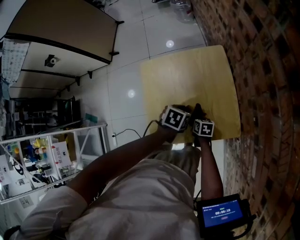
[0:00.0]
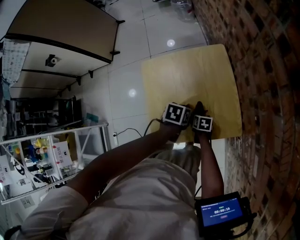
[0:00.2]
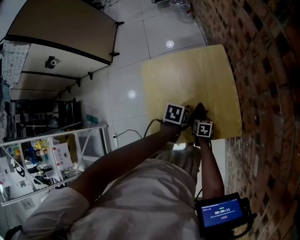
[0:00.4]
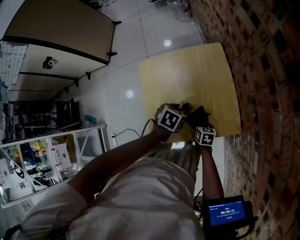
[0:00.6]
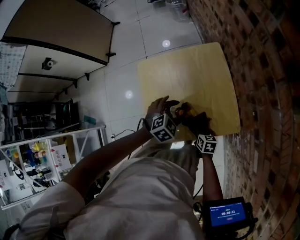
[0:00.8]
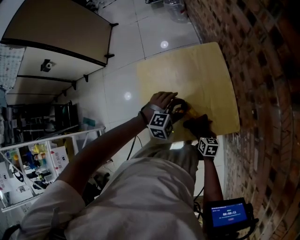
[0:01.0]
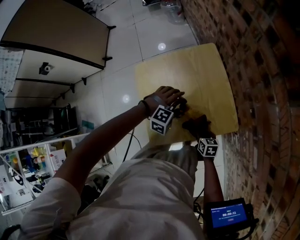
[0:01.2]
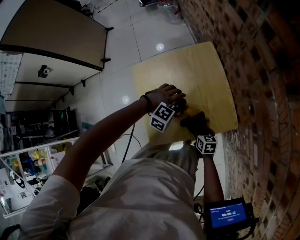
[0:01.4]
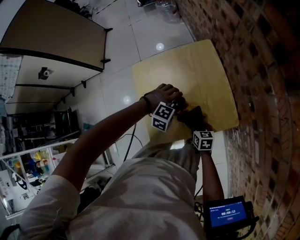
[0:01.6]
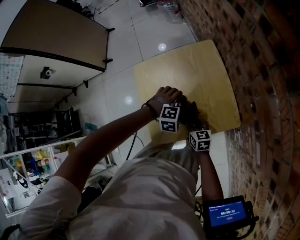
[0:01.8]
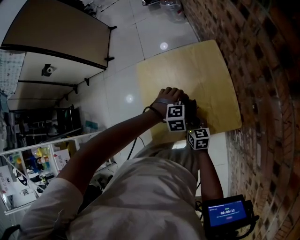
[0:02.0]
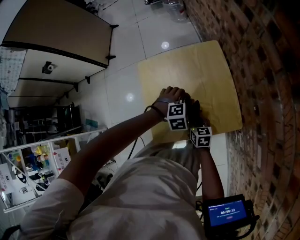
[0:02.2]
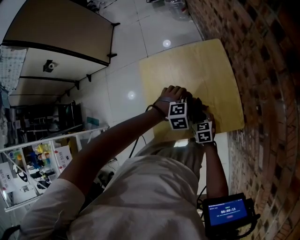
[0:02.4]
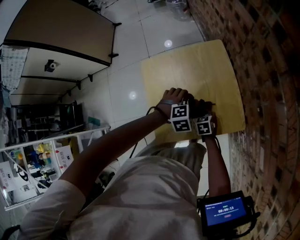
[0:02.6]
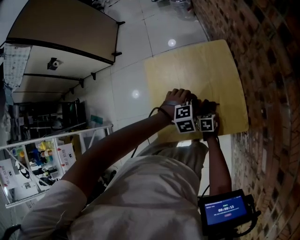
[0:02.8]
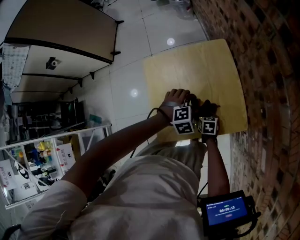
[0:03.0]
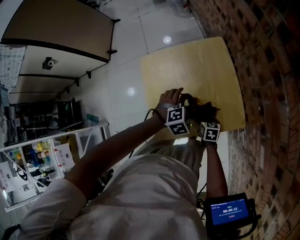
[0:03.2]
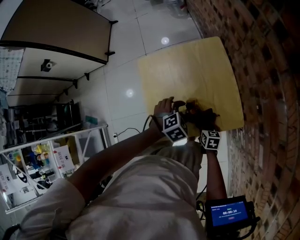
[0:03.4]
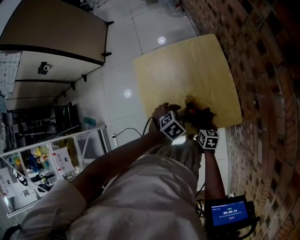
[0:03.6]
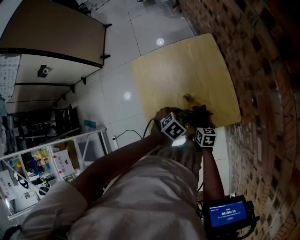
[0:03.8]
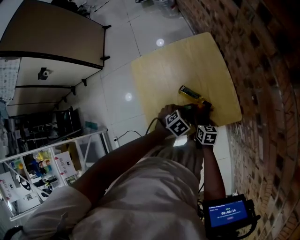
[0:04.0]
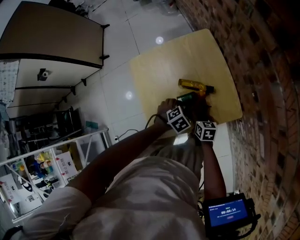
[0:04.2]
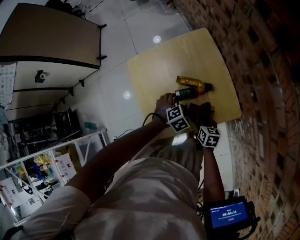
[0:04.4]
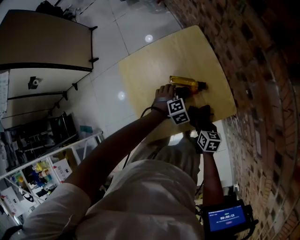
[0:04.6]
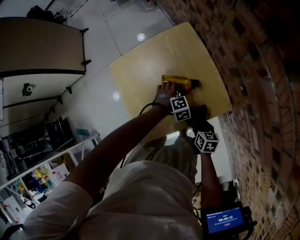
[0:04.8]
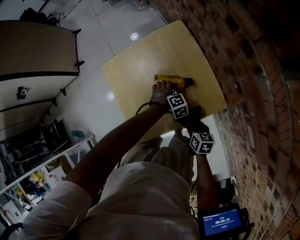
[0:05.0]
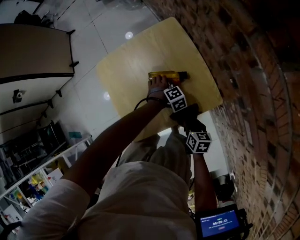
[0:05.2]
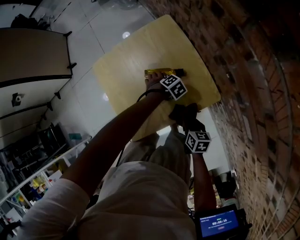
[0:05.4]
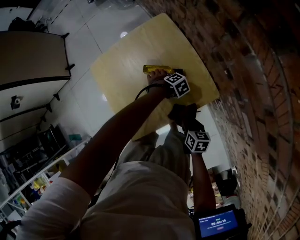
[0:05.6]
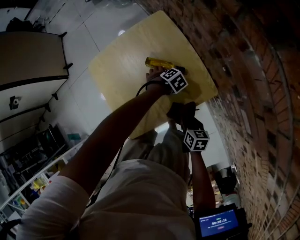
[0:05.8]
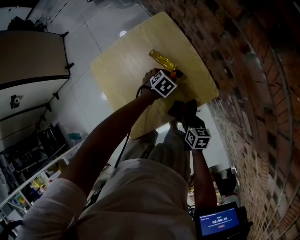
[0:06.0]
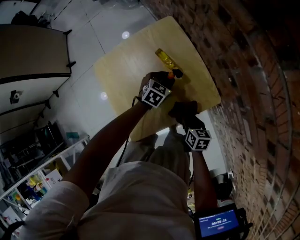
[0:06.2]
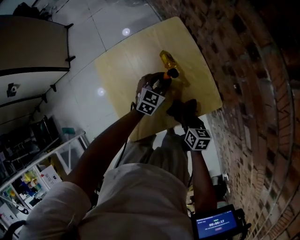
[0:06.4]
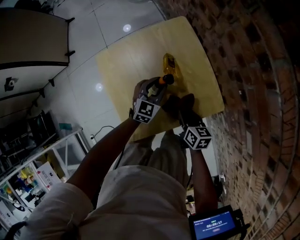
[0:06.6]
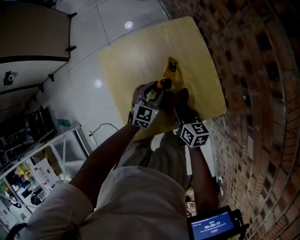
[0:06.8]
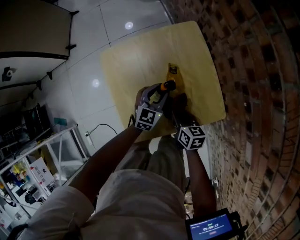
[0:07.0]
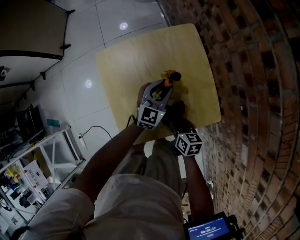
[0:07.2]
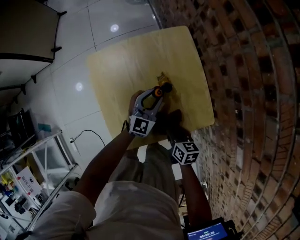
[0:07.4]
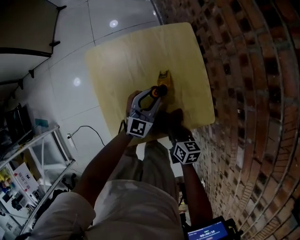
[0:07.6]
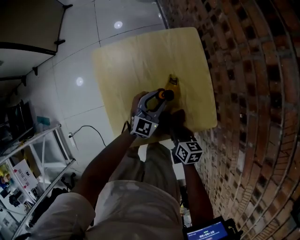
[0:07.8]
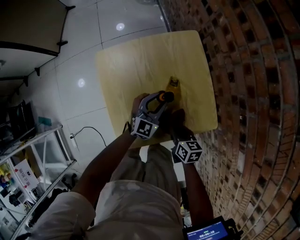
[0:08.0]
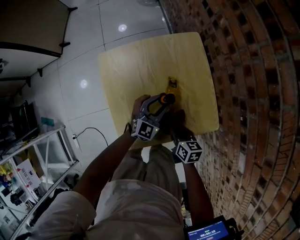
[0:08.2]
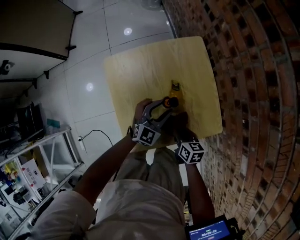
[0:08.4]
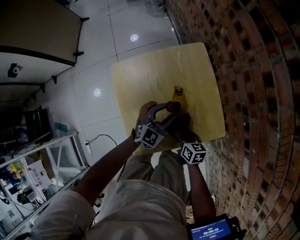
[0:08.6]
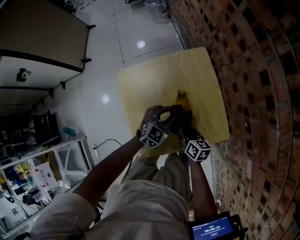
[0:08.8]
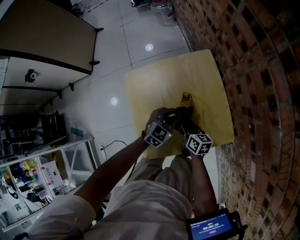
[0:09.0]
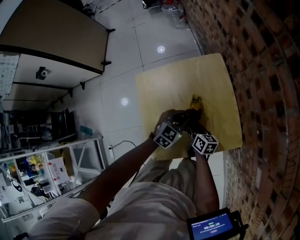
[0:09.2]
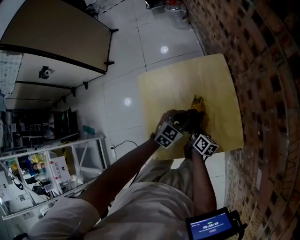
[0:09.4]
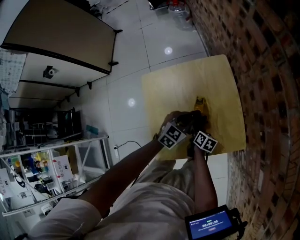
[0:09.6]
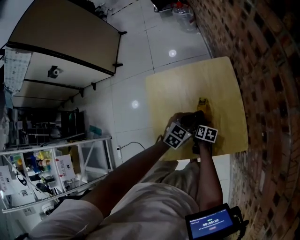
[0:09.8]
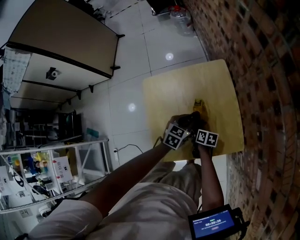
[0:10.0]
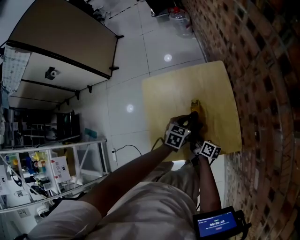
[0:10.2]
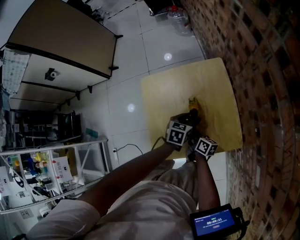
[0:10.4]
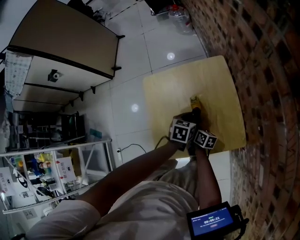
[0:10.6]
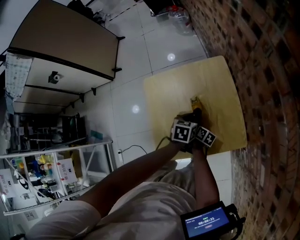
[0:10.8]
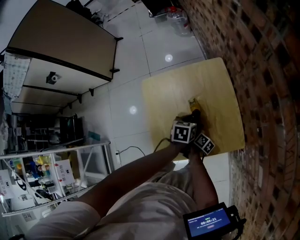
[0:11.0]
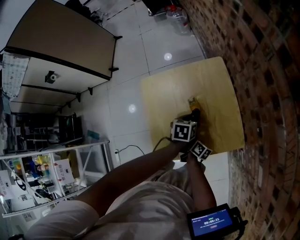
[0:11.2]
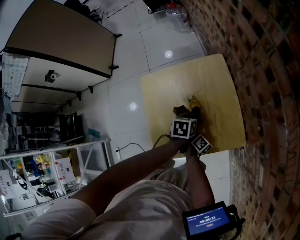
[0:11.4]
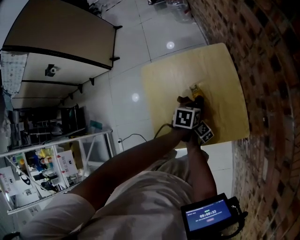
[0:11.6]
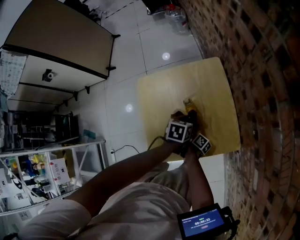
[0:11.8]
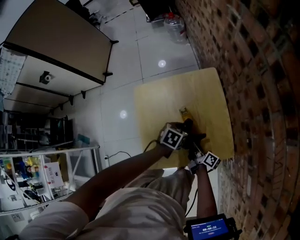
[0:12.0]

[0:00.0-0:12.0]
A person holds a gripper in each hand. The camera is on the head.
0:00.0 to 0:01.6: The left gripper rotates around the line of its fingers by roughly 100 degrees, clockwise from behind, while the right gripper shifts by about 5 cm.
0:01.6 to 0:03.0: The left gripper changes its angle by approximately 40 degrees, while the right gripper shifts roughly 5 cm downward.
0:03.0 to 0:04.4: The left gripper heads downward, covering approximately 5 cm. Meanwhile the right gripper shifts by approximately 10 cm, and swivels about 20 degrees.
0:04.4 to 0:06.0: The right gripper ends up approximately 10 cm from where it was; the left gripper moves some 15 cm.
0:06.0 to 0:07.6: The left gripper heads to the left and upward, covering some 15 cm, and points its fingers roughly 60 degrees further upward, while the right gripper goes some 10 cm to the left and forward.
0:07.6 to 0:09.0: The right gripper goes approximately 10 cm forward and to the left, while the left gripper rotates approximately 30 degrees.
0:09.0 to 0:10.4: The left gripper rotates about 40 degrees. Meanwhile the right gripper moves about 10 cm downward and comes back.
0:10.4 to 0:12.0: The right gripper shifts some 5 cm to the right, and rotates about 20 degrees.

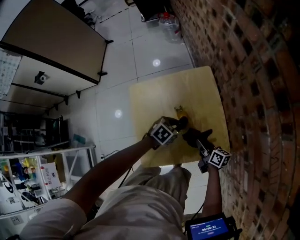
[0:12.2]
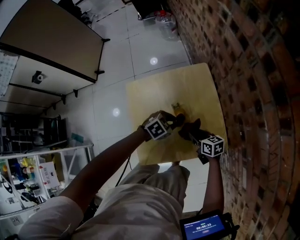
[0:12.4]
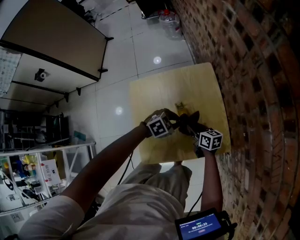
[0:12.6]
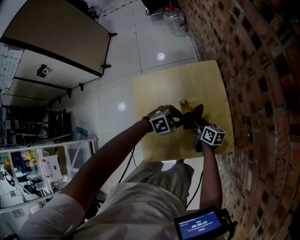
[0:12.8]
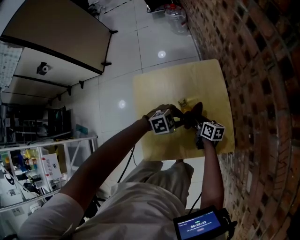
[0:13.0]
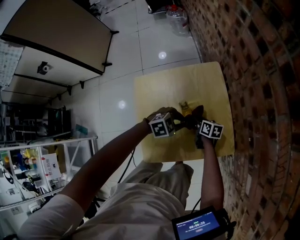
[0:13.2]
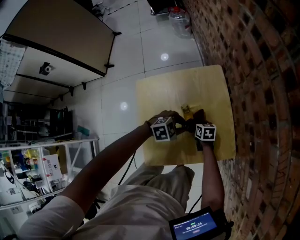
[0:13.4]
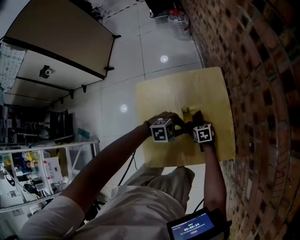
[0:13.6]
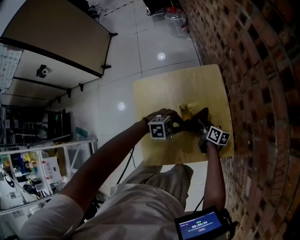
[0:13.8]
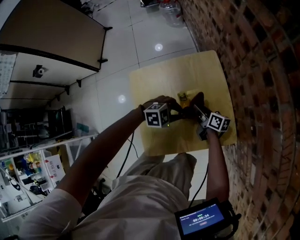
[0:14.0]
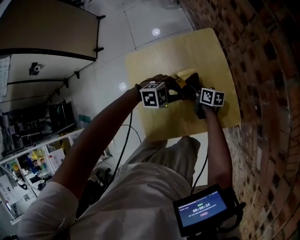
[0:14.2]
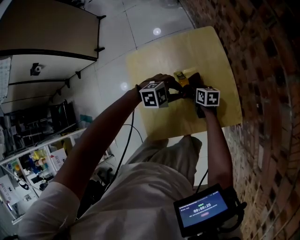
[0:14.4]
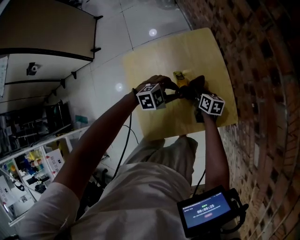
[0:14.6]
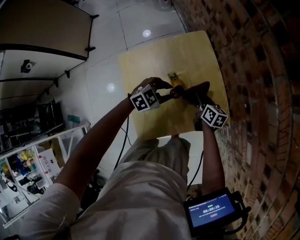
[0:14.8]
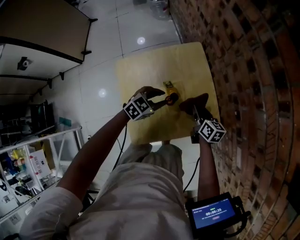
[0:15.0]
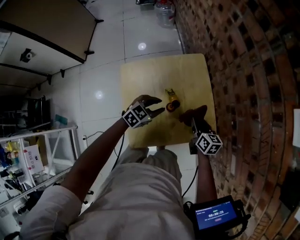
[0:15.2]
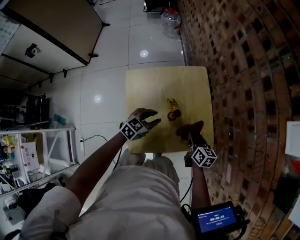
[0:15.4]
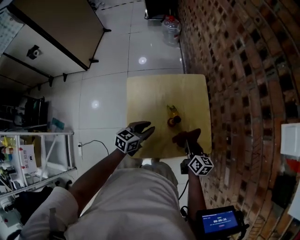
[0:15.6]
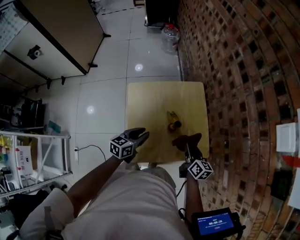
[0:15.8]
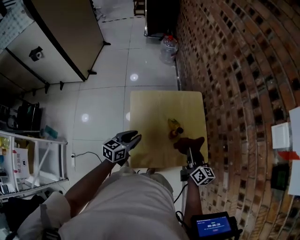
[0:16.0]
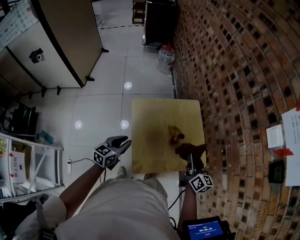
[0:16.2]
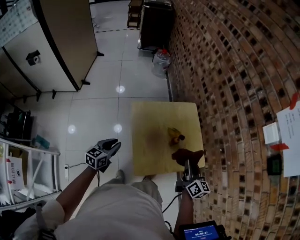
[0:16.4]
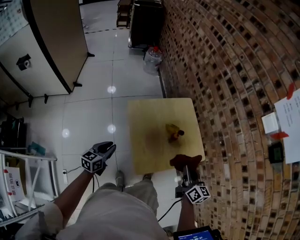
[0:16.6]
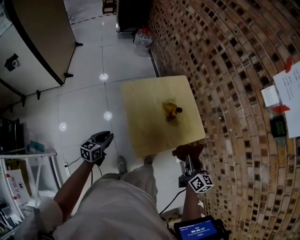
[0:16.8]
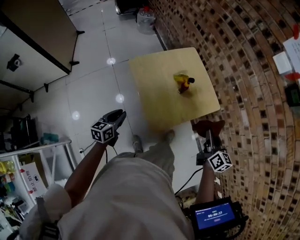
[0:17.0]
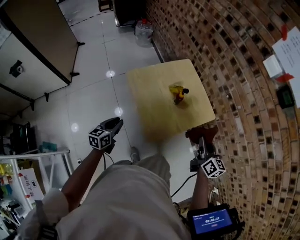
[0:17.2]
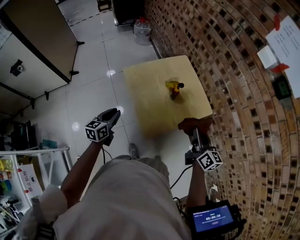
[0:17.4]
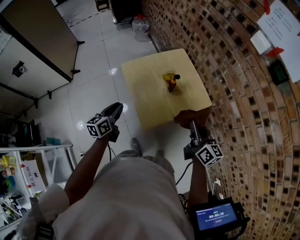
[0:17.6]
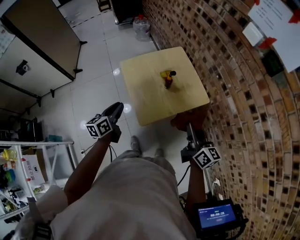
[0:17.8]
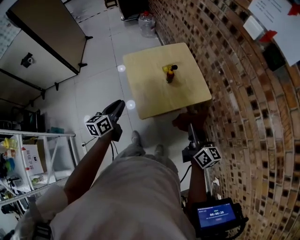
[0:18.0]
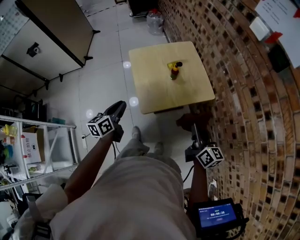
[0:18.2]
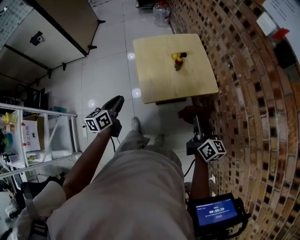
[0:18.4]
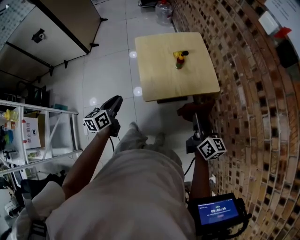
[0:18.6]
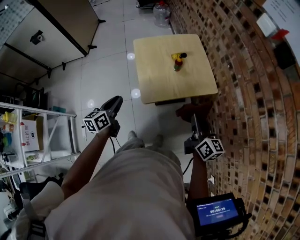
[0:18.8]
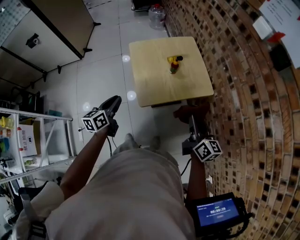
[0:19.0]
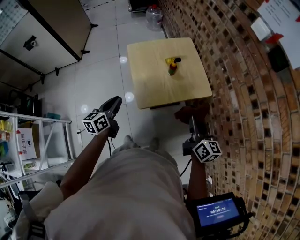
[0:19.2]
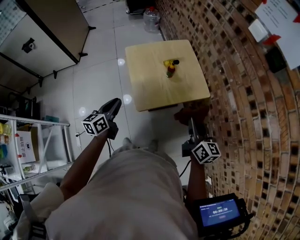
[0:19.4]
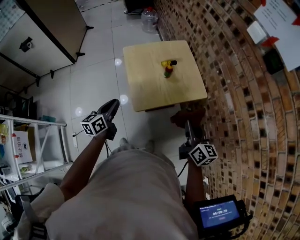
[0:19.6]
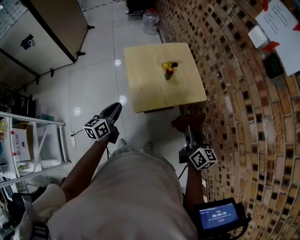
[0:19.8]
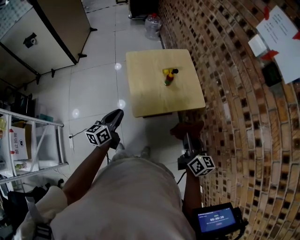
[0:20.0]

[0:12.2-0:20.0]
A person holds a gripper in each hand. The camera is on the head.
0:12.2 to 0:13.8: The right gripper ends up roughly 10 cm from where it was, while the left gripper changes its angle by some 40 degrees.
0:13.8 to 0:15.4: The right gripper heads upward, covering some 10 cm. Meanwhile the left gripper changes place by about 10 cm, and turns by roughly 50 degrees.
0:15.4 to 0:16.8: The right gripper heads backward, upward and to the left, covering approximately 25 cm, and turns by about 20 degrees. The left gripper is displaced to the left and backward by roughly 35 cm, and swivels approximately 20 degrees.
0:16.8 to 0:18.4: The right gripper heads backward and to the right, covering roughly 15 cm. The left gripper travels backward, to the right and upward by approximately 20 cm, and turns by roughly 20 degrees.
0:18.4 to 0:20.0: The grippers make only small movements.

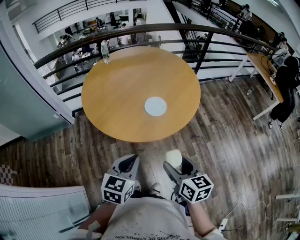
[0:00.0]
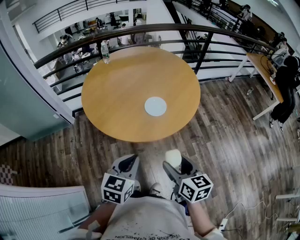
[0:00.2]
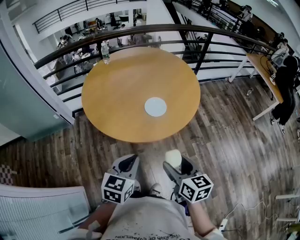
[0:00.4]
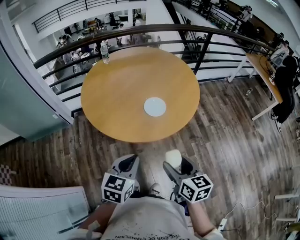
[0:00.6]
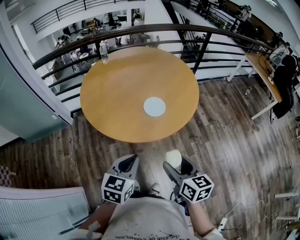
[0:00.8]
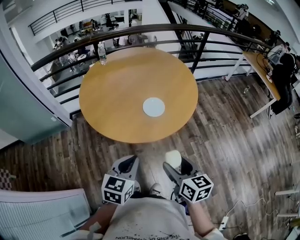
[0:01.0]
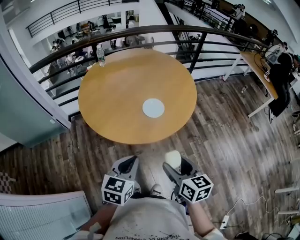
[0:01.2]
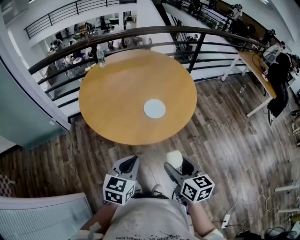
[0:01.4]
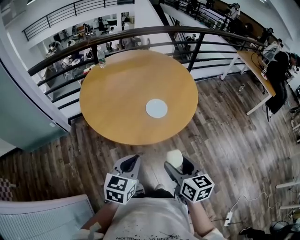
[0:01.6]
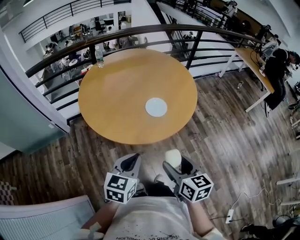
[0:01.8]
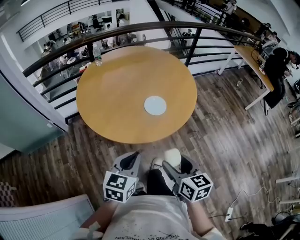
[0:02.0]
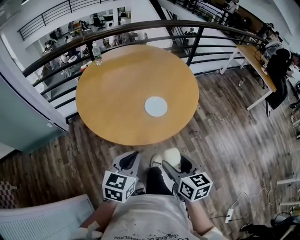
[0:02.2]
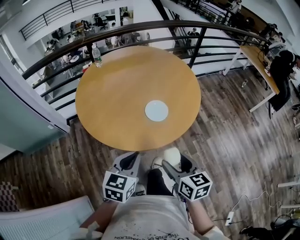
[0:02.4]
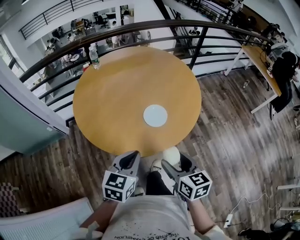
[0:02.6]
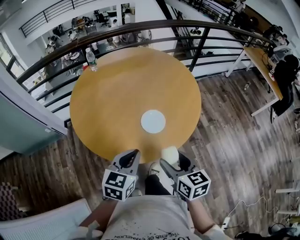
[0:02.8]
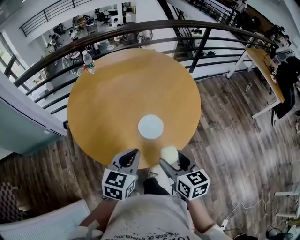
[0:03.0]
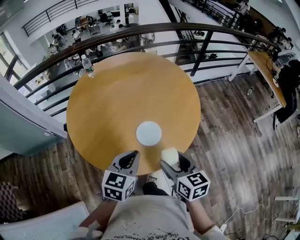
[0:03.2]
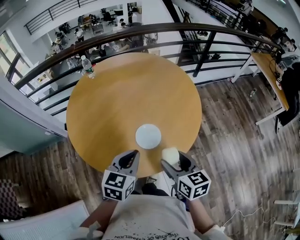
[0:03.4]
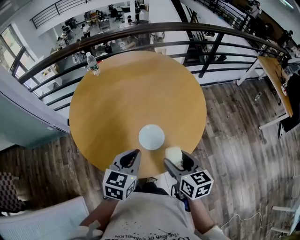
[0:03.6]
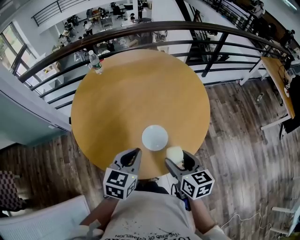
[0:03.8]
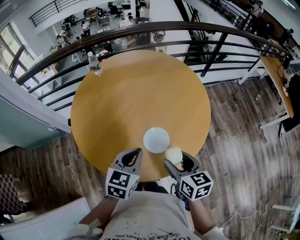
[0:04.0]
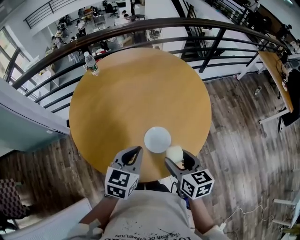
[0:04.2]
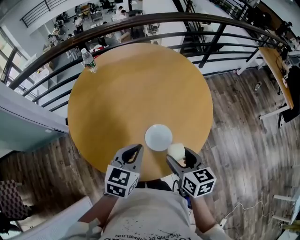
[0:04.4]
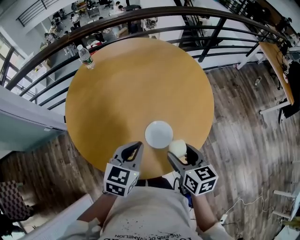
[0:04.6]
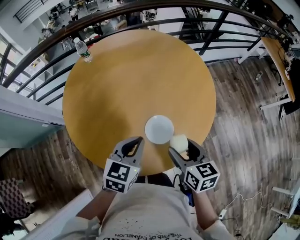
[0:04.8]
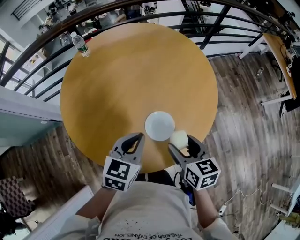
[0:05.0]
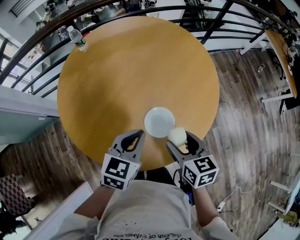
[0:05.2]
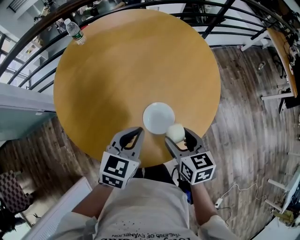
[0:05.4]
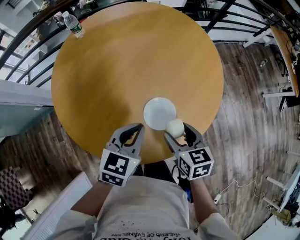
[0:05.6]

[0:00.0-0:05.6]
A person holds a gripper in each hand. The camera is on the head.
0:00.0 to 0:01.4: The grippers stay close to where they were, moving slightly.
0:01.4 to 0:02.8: The two grippers go some 15 cm forward.
0:02.8 to 0:04.2: Both grippers travel together forward, roughly 15 cm.
0:04.2 to 0:05.6: The grippers both shift downward by approximately 10 cm.
